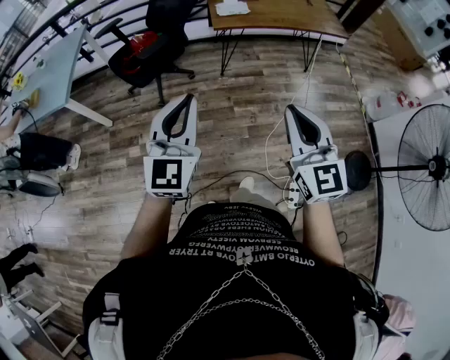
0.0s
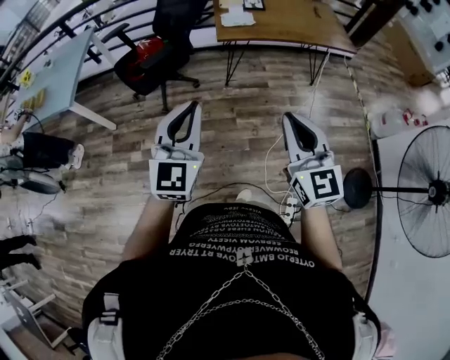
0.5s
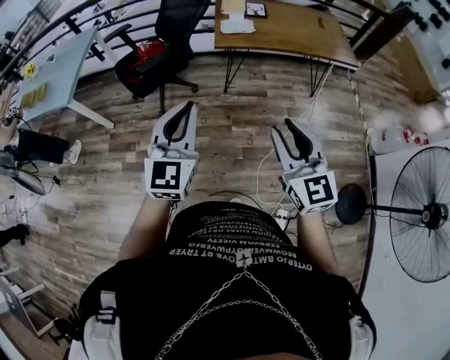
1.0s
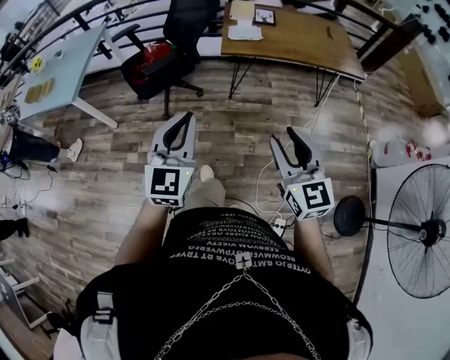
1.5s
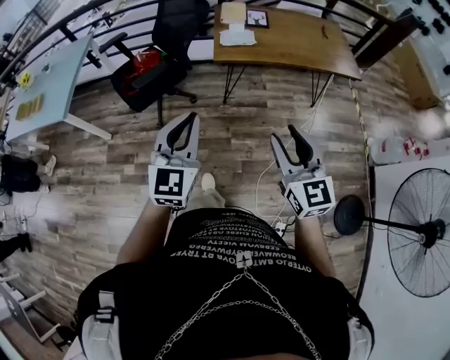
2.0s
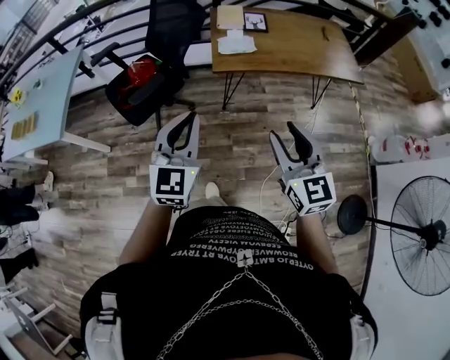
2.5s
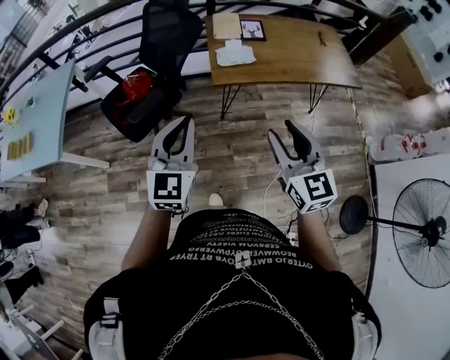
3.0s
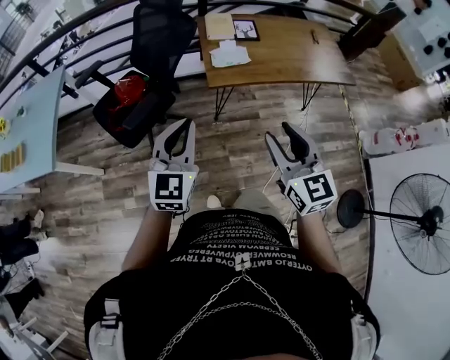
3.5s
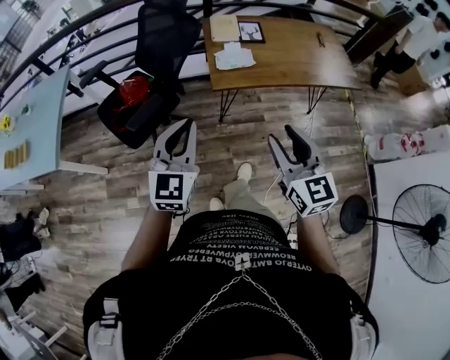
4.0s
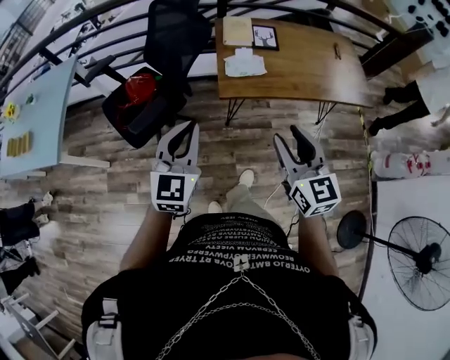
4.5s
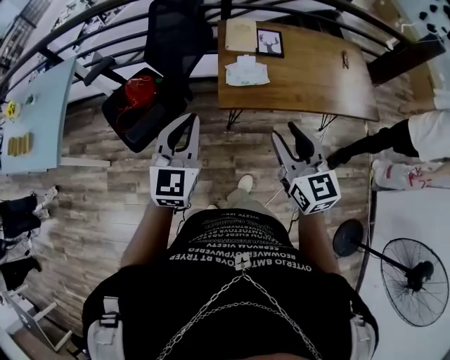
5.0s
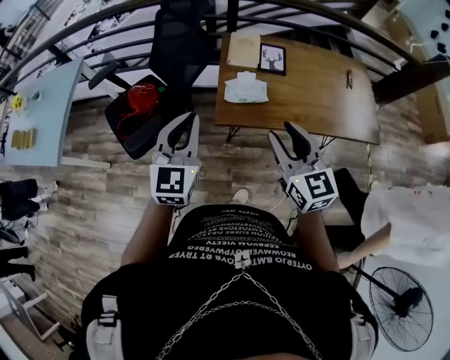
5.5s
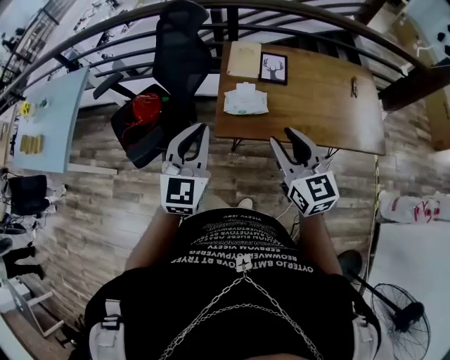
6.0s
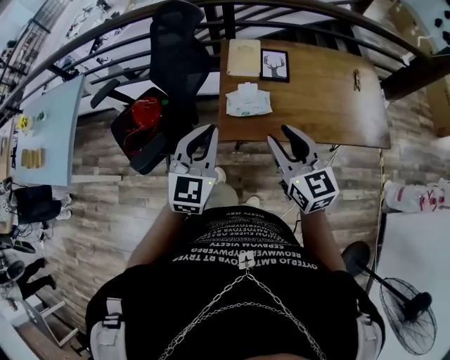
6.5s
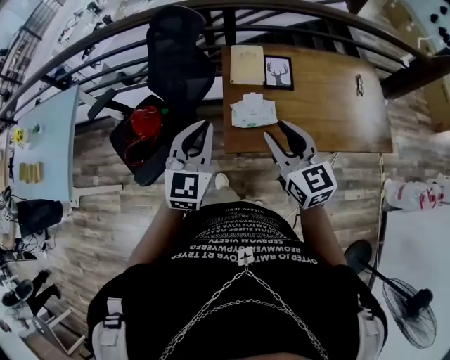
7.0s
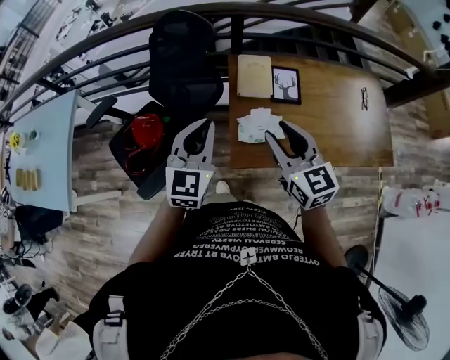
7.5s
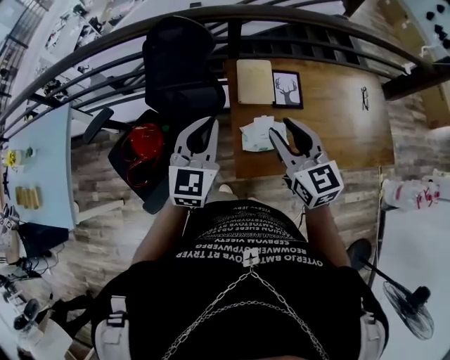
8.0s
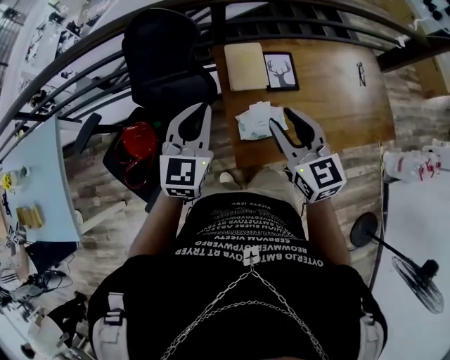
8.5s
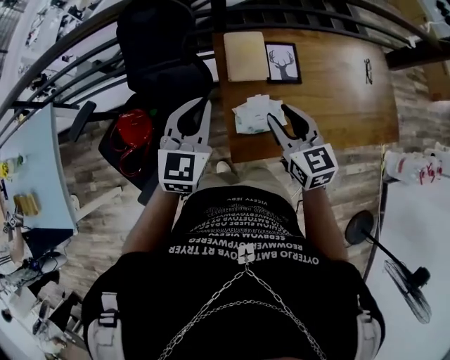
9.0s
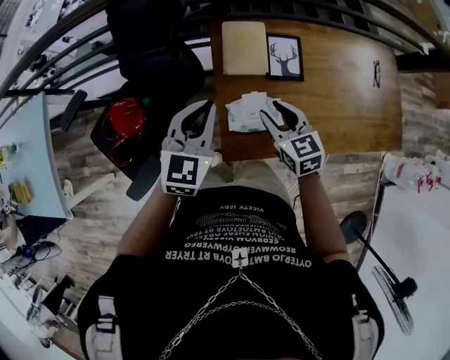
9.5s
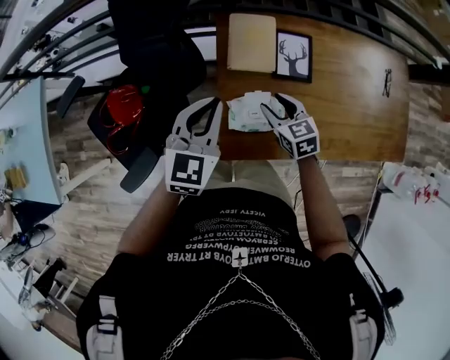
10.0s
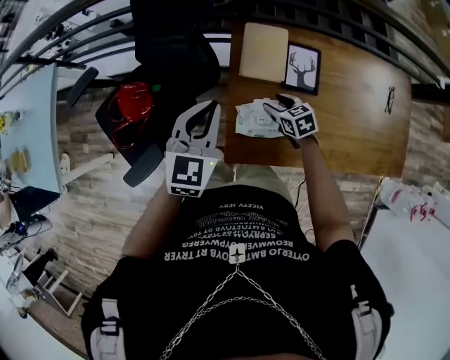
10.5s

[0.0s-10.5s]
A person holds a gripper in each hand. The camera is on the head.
0.0s to 2.0s: Both grippers move forward and to the right, about 20 cm. The right gripper opens up.
2.0s to 4.0s: The grippers both shift forward by about 20 cm.
4.0s to 6.5s: The right gripper goes approximately 30 cm forward, while the left gripper moves forward and to the right, approximately 25 cm.
6.5s to 8.5s: Both grippers travel together forward, about 25 cm.
8.5s to 10.5s: The right gripper moves downward, some 35 cm, and tilts its fingers approximately 30 degrees downward; the left gripper moves downward, some 10 cm.

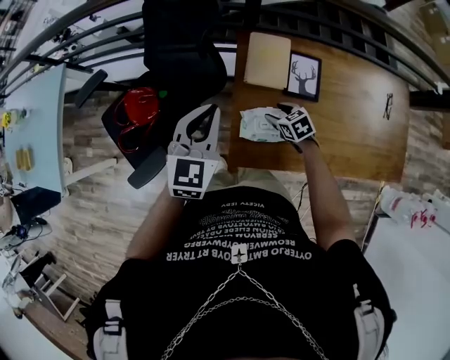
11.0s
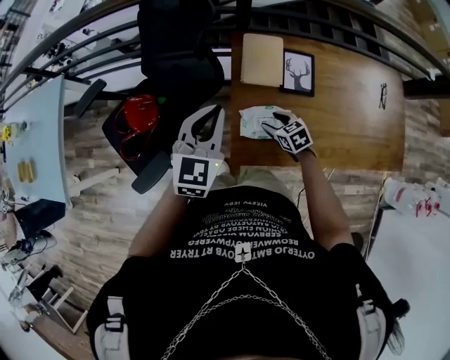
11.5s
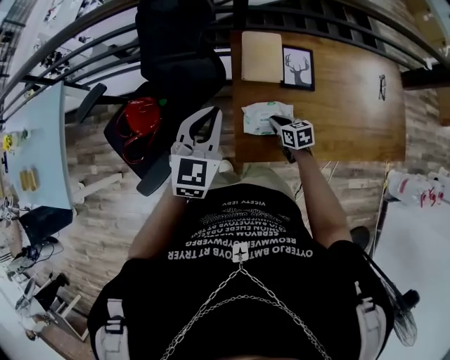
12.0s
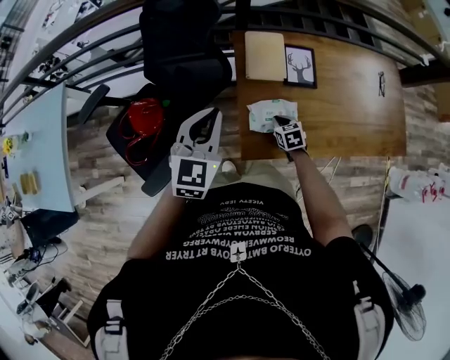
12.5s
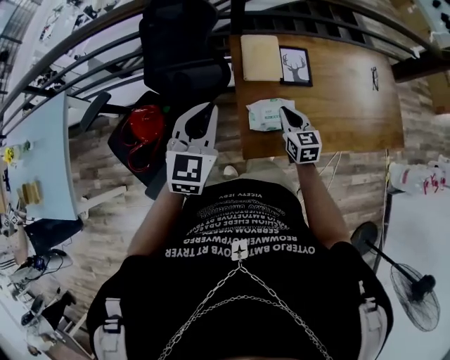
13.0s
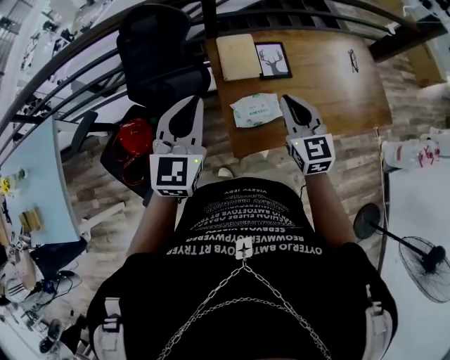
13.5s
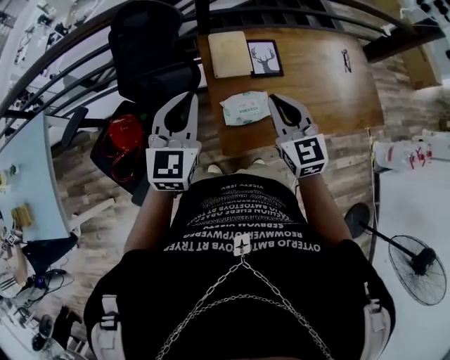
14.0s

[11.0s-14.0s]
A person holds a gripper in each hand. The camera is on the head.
11.0s to 12.5s: The left gripper ends up approximately 5 cm from where it was, while the right gripper shifts about 5 cm backward, rotates roughly 20 degrees, and closes its fingers.
12.5s to 14.0s: The right gripper goes approximately 35 cm upward, and angles its fingers upward, by approximately 40 degrees, while the left gripper shifts roughly 5 cm upward.

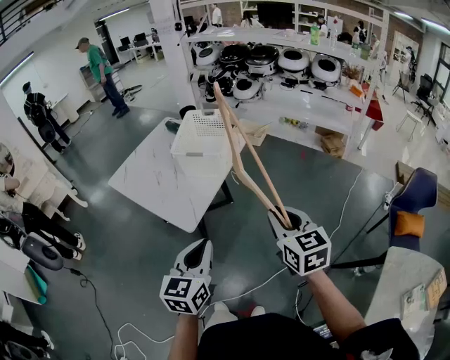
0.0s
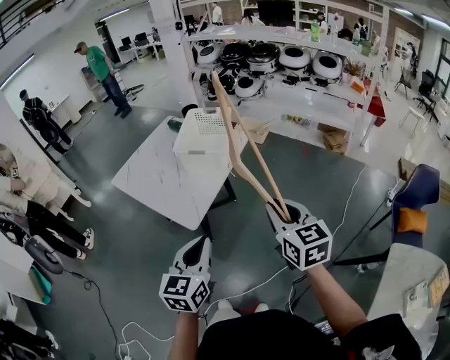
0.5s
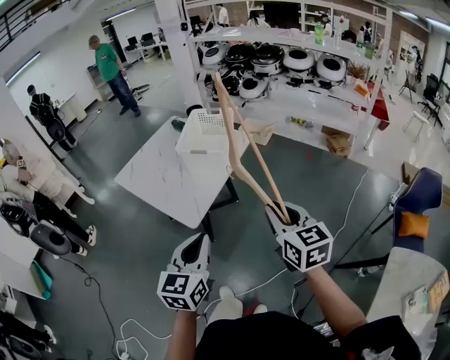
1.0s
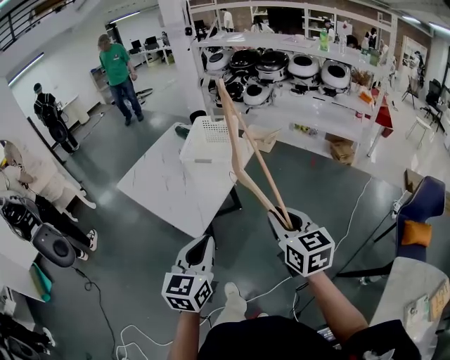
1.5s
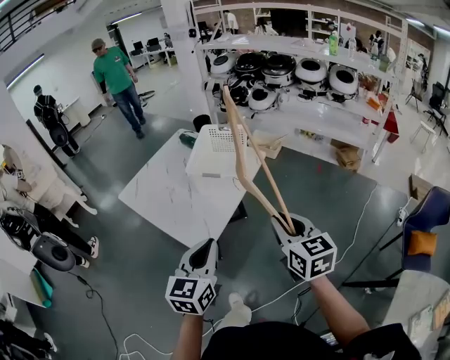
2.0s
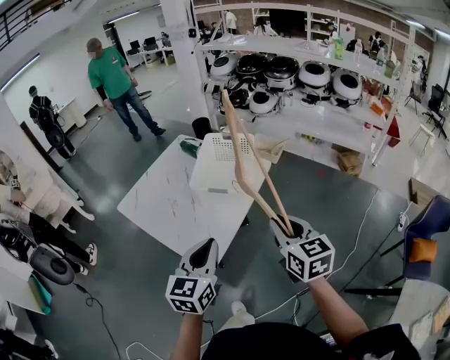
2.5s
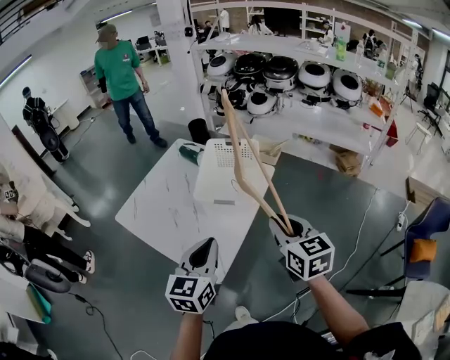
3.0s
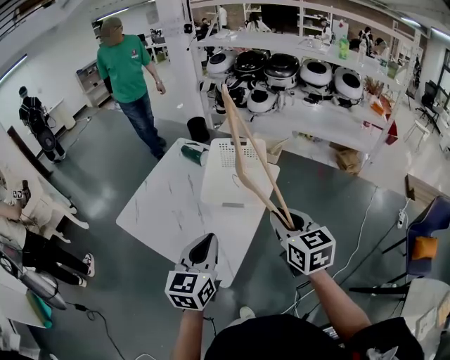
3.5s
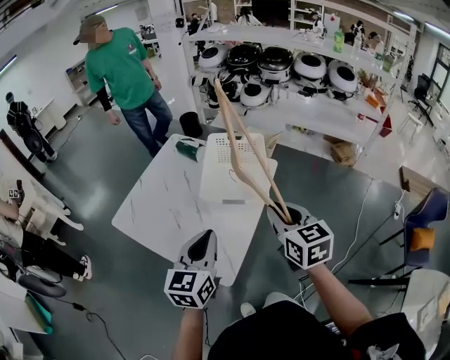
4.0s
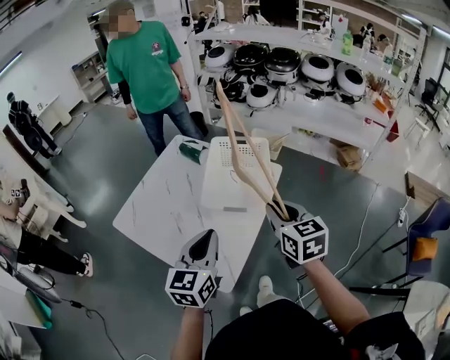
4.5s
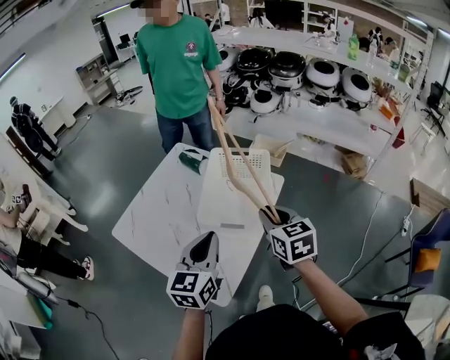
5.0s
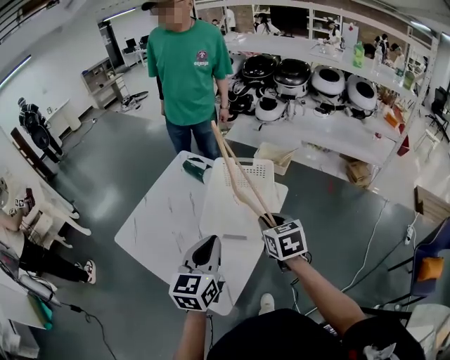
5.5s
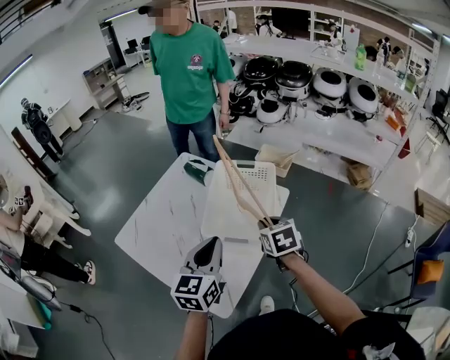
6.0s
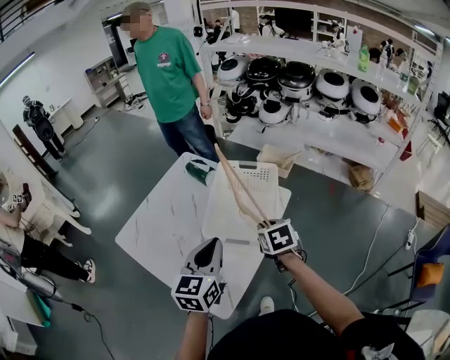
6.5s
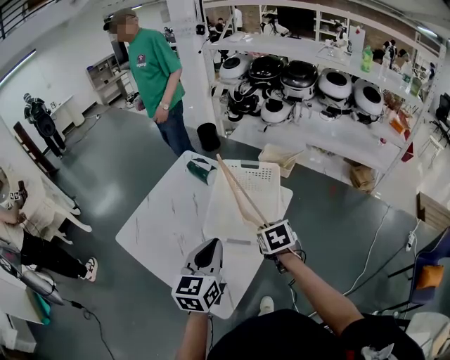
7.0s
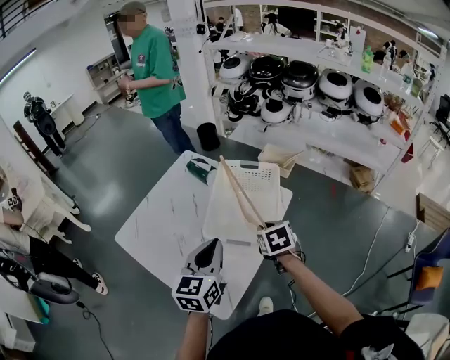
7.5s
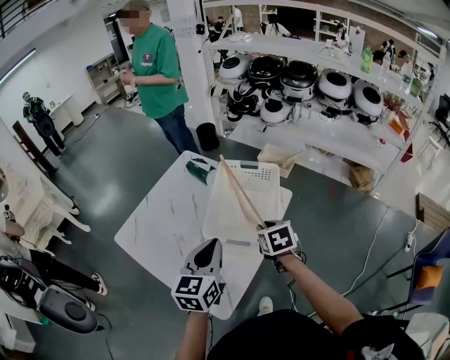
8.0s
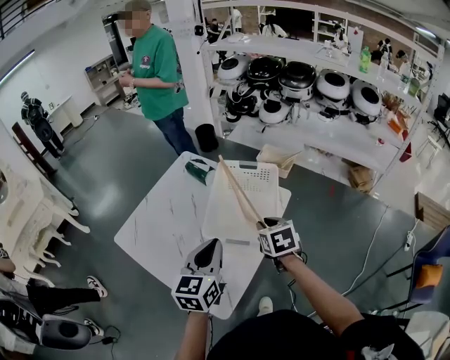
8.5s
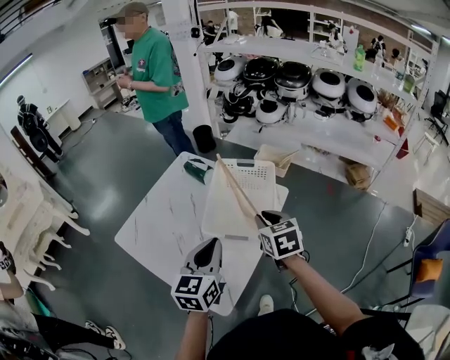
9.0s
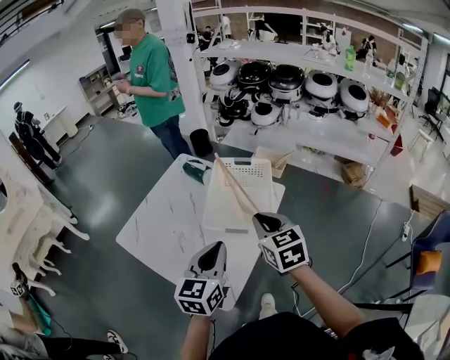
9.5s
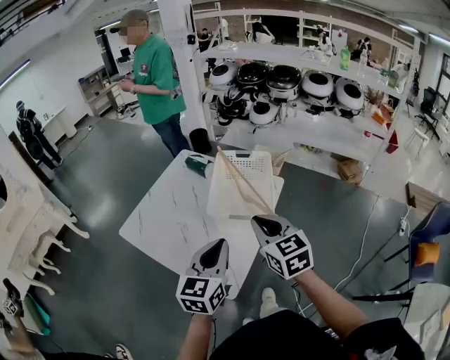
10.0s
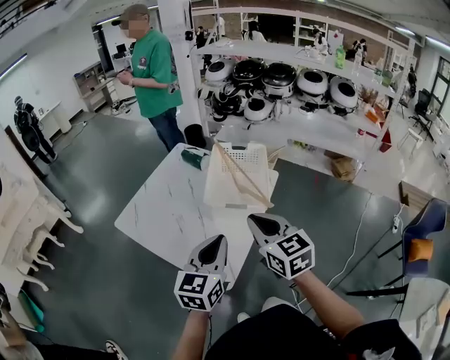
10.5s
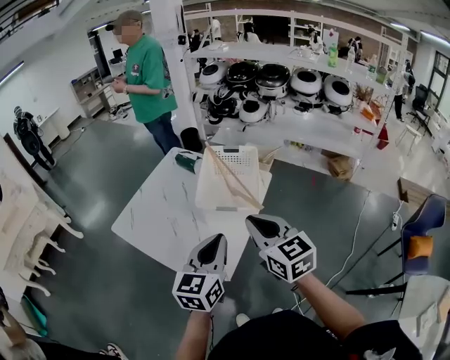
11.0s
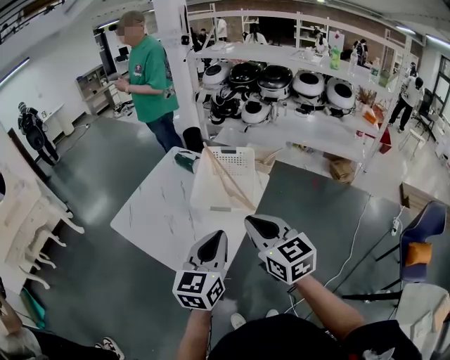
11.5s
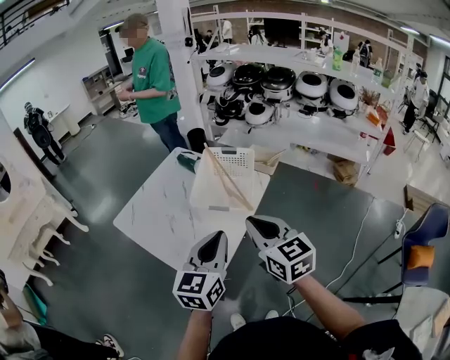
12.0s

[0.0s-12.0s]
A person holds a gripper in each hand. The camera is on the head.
0.0s to 2.0s: Both grippers move forward, roughly 10 cm.
2.0s to 4.0s: The grippers both shift forward and to the left by approximately 20 cm.
4.0s to 6.0s: The right gripper is displaced forward and downward by roughly 20 cm, and turns by roughly 20 degrees, while the left gripper is displaced forward by roughly 10 cm.
6.0s to 8.0s: The grippers move only a little.
8.0s to 10.0s: The right gripper goes approximately 20 cm upward and backward, and turns by about 30 degrees. The left gripper heads backward, covering approximately 10 cm.
10.0s to 12.0s: The left gripper is displaced to the right by approximately 10 cm; the right gripper is displaced backward and to the right by about 10 cm.

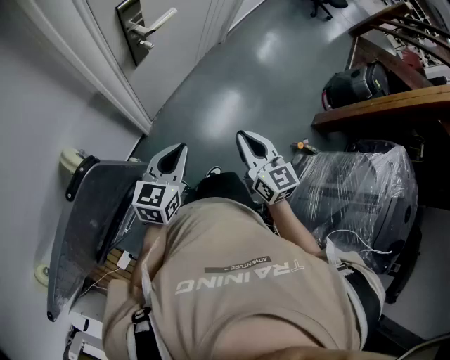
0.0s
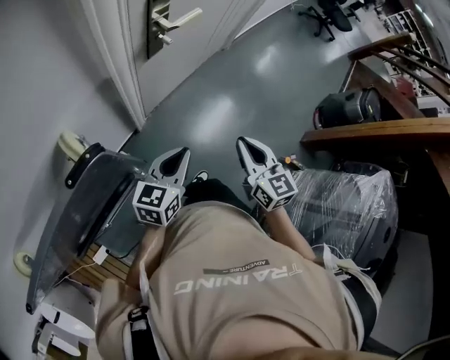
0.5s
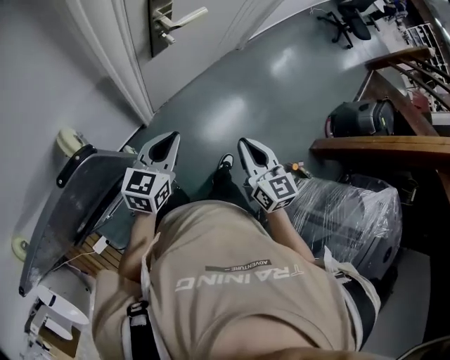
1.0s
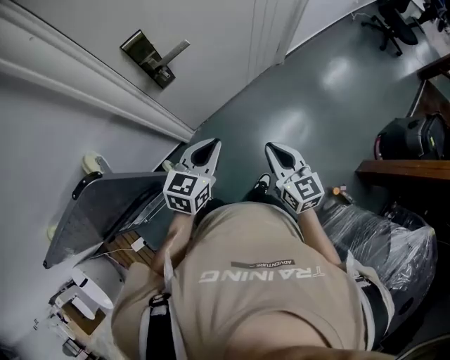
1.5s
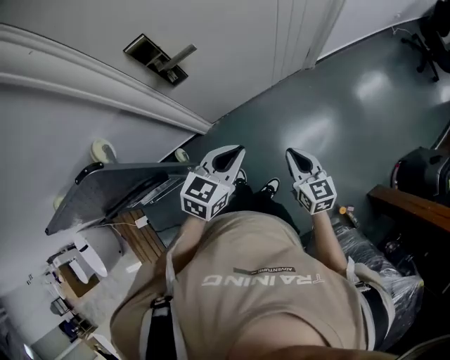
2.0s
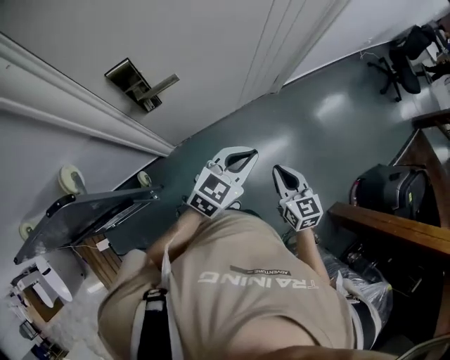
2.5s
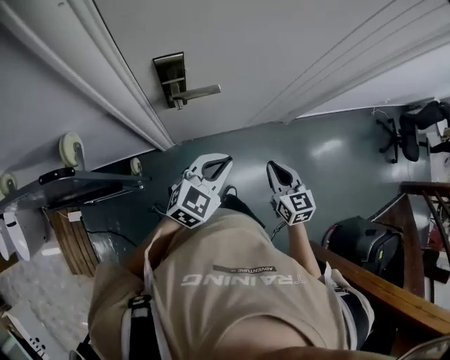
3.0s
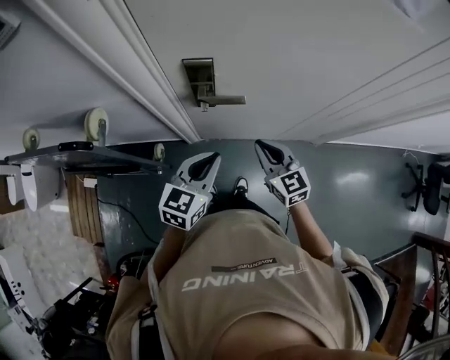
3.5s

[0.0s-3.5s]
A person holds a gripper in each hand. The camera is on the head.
0.0s to 2.0s: The left gripper heads to the right and forward, covering approximately 25 cm. The right gripper travels to the right, forward and downward by about 30 cm, and rotates some 20 degrees.
2.0s to 3.5s: The right gripper ends up roughly 30 cm from where it was, and turns by roughly 40 degrees. Meanwhile the left gripper changes place by about 20 cm, and turns by approximately 40 degrees.
